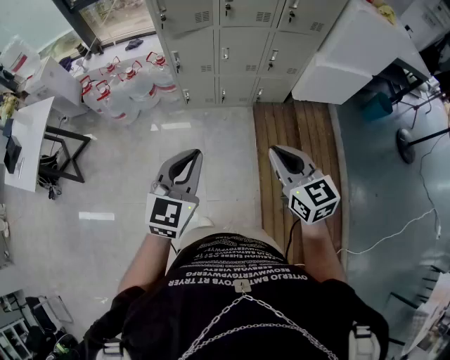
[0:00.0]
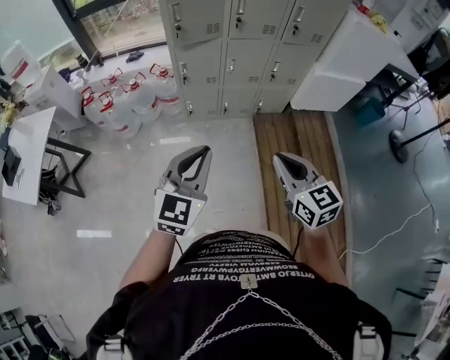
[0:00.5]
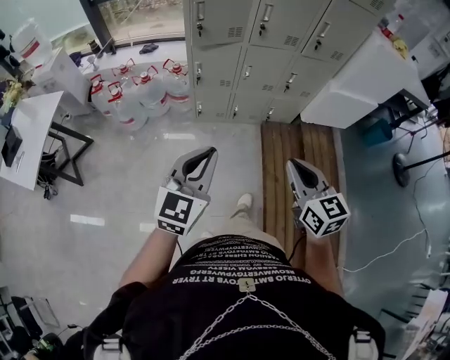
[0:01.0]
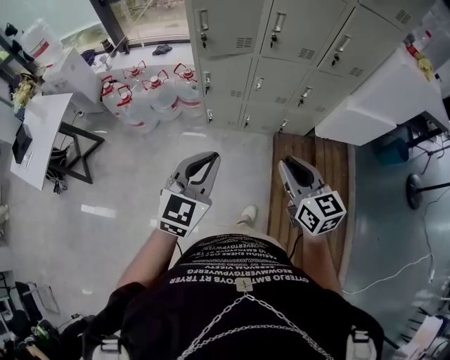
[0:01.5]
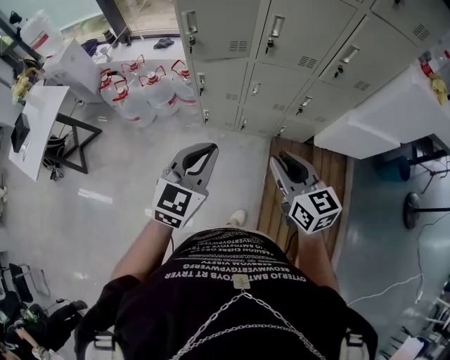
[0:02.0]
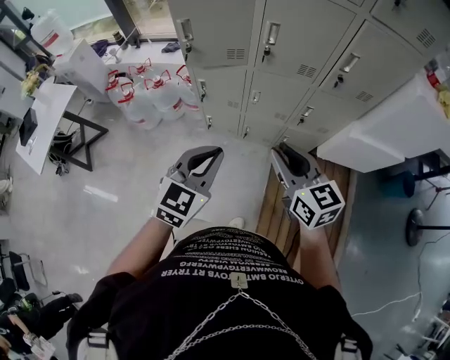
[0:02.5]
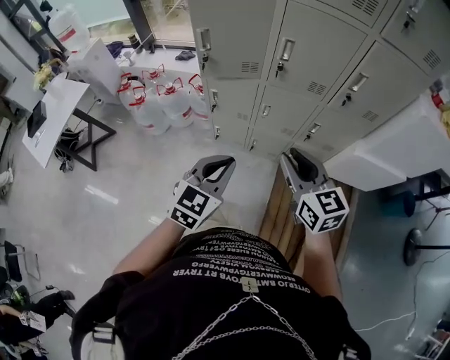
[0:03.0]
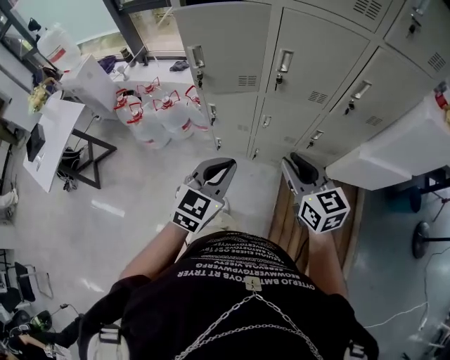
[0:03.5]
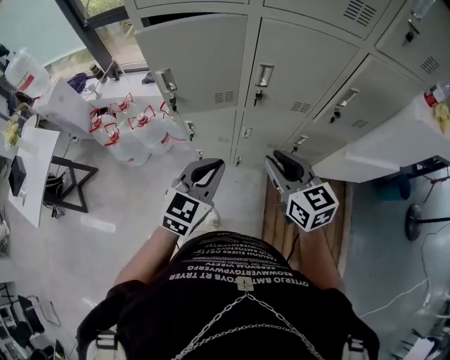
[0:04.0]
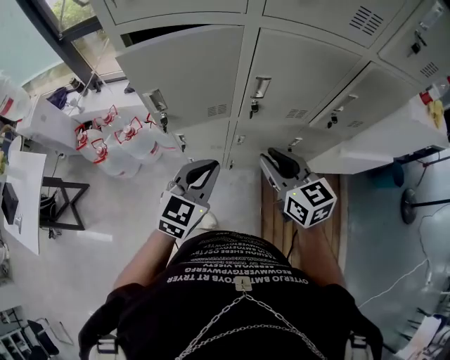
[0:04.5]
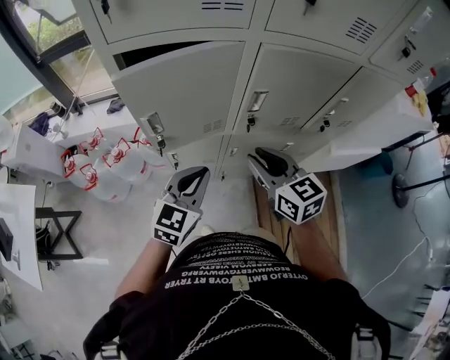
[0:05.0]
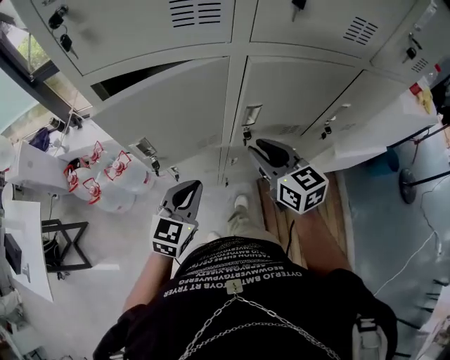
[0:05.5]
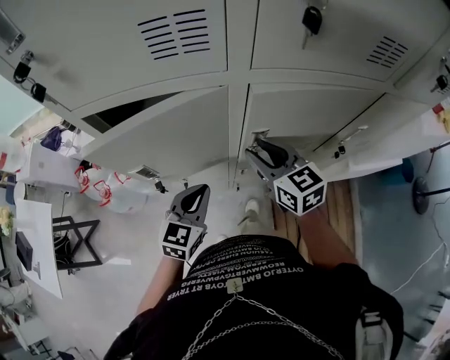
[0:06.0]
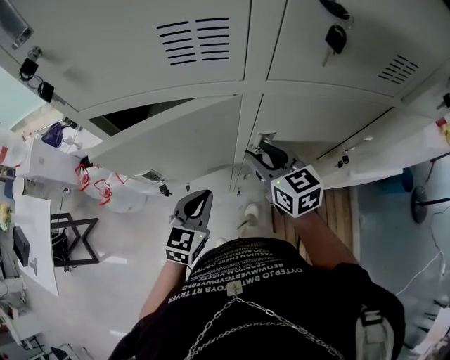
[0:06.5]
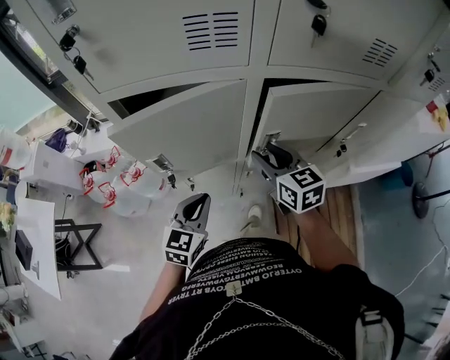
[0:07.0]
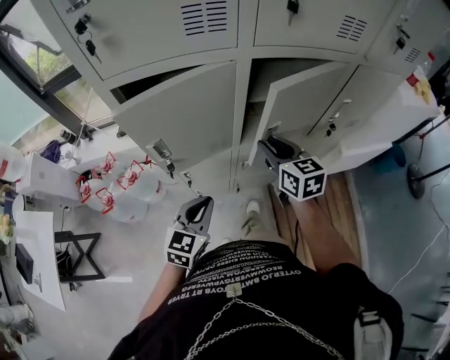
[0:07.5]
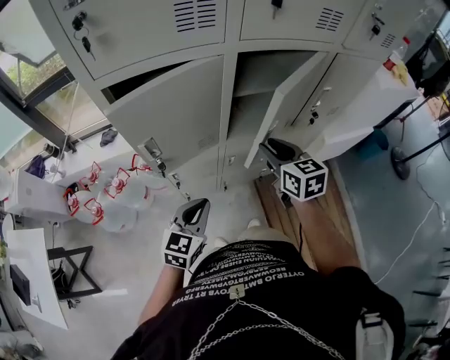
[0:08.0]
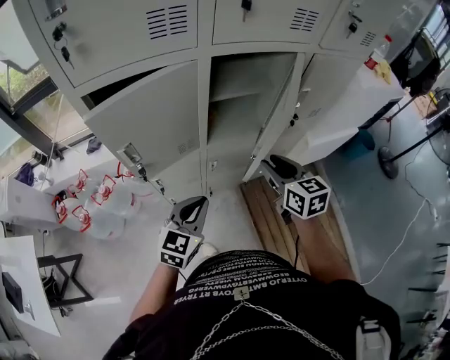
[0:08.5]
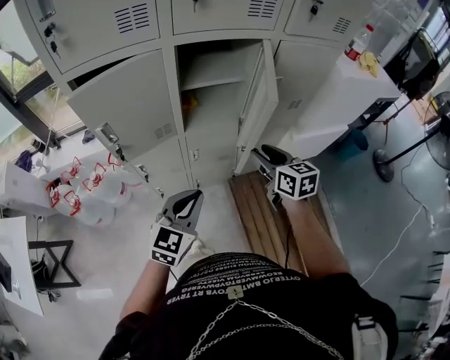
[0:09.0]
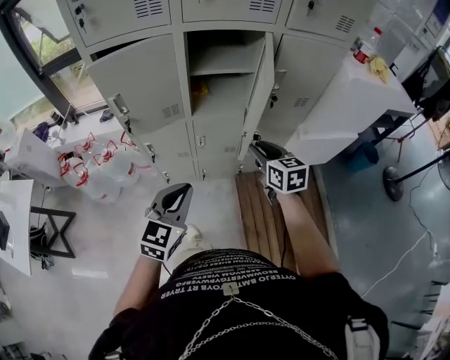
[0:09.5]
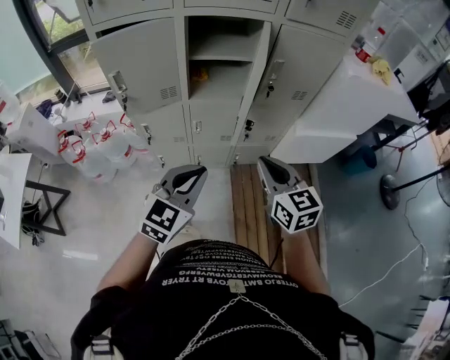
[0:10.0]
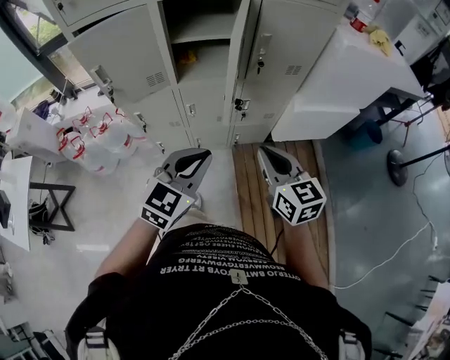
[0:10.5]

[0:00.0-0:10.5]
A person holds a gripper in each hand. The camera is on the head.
0:00.0 to 0:02.0: Both grippers move forward, approximately 25 cm. The right gripper opens its fingers.
0:02.0 to 0:04.0: Both grippers travel together forward, approximately 20 cm.
0:04.0 to 0:06.5: The two grippers go some 25 cm forward.
0:06.5 to 0:08.5: The right gripper goes some 20 cm backward and to the right, and rotates approximately 20 degrees. Meanwhile the left gripper heads backward, covering roughly 15 cm.
0:08.5 to 0:10.5: The left gripper shifts approximately 25 cm to the right and backward; the right gripper goes approximately 25 cm backward and to the right, and closes.

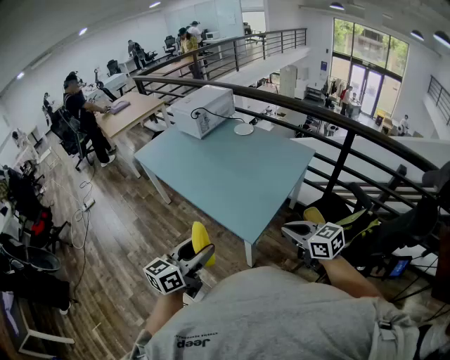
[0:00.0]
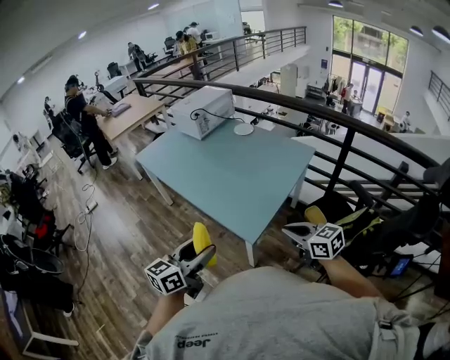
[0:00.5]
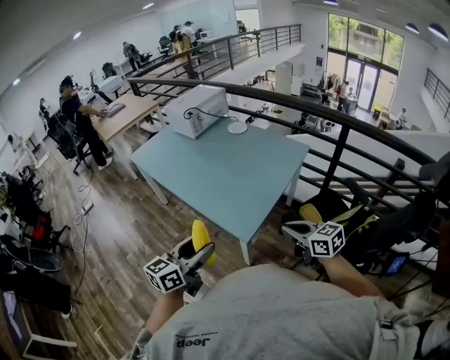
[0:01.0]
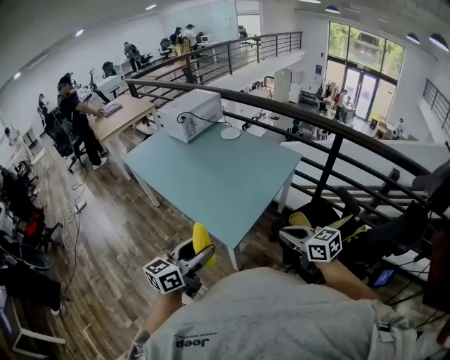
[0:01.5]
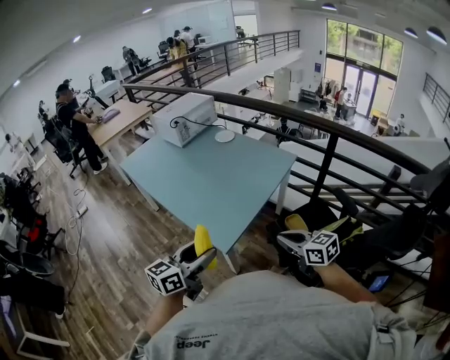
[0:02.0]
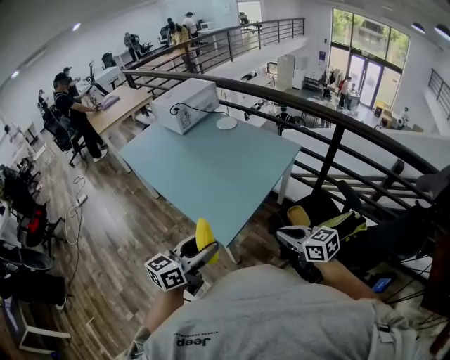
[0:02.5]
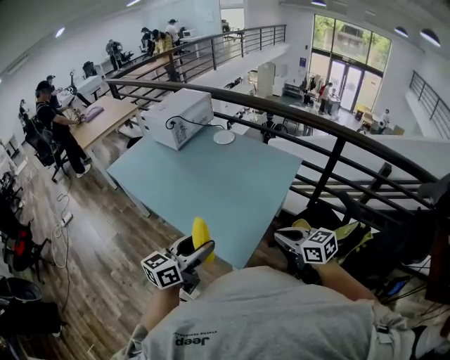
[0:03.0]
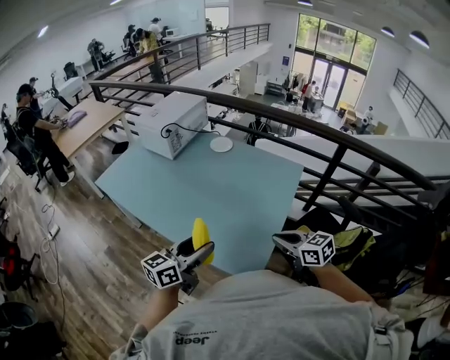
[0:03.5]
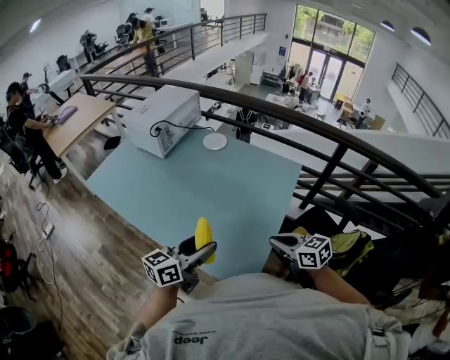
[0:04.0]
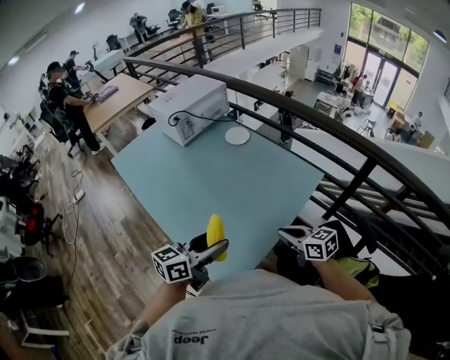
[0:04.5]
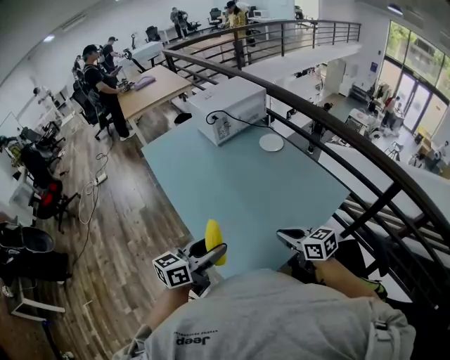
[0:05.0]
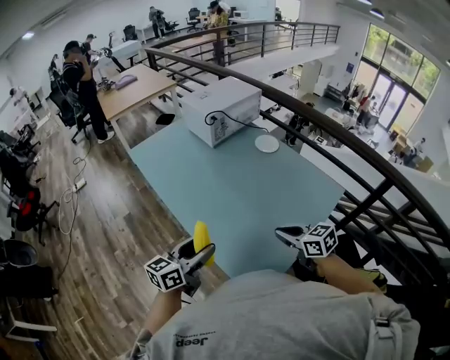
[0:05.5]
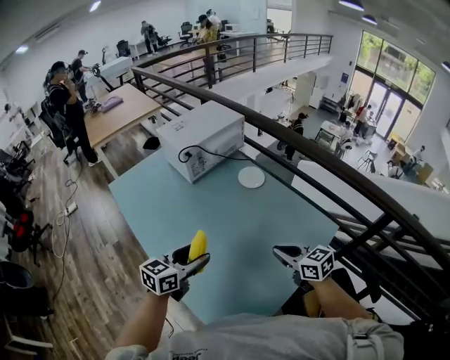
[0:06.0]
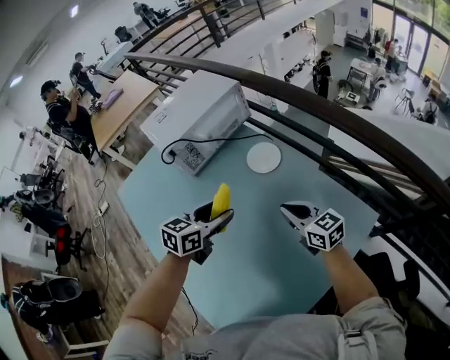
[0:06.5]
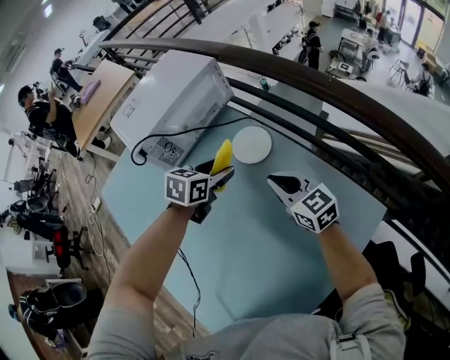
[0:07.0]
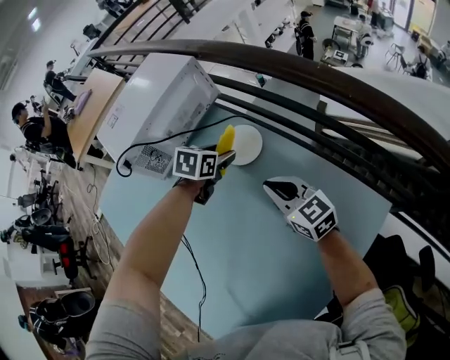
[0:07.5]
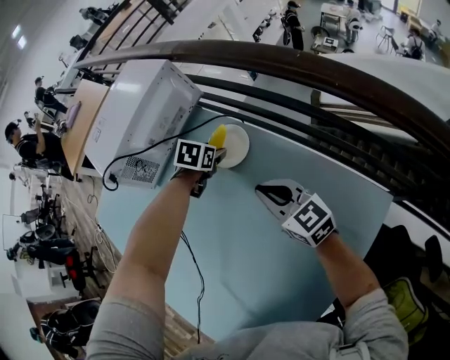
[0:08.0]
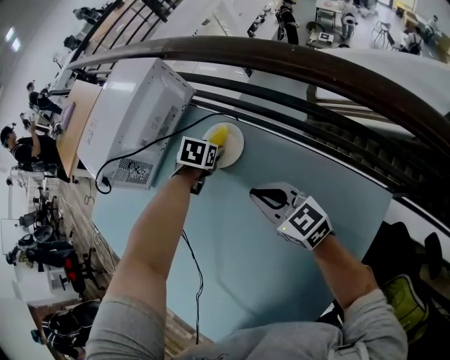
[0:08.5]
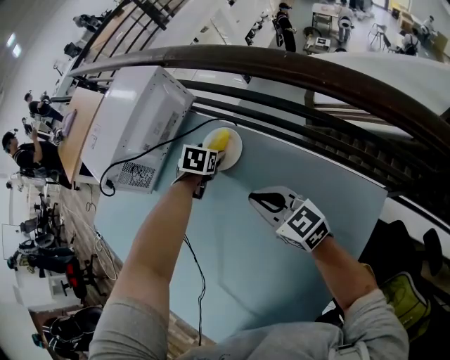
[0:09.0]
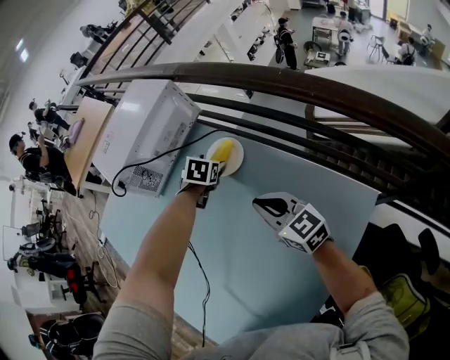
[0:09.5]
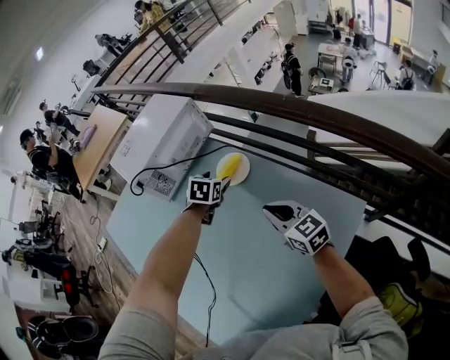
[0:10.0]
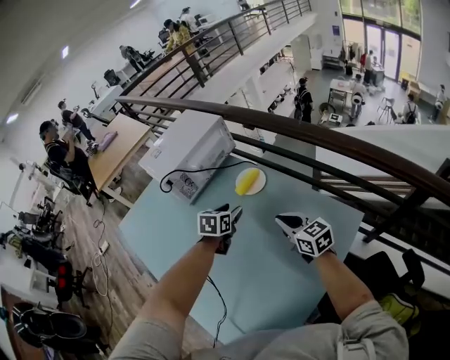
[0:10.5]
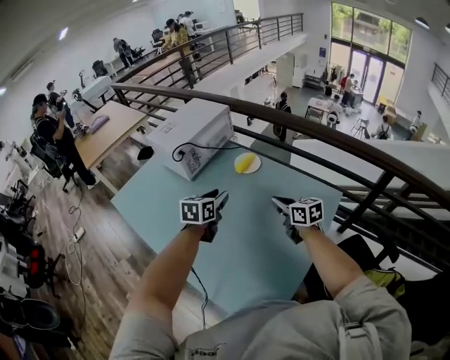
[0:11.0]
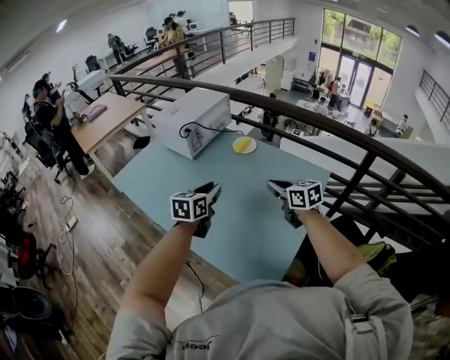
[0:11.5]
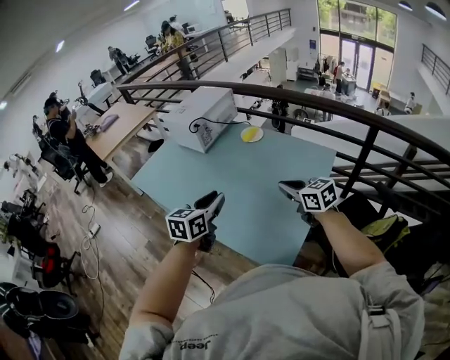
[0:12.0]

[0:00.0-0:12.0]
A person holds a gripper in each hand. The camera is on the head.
0:00.0 to 0:02.0: Both grippers travel together to the right, about 15 cm.
0:02.0 to 0:04.0: The two grippers go some 30 cm forward and to the left.
0:04.0 to 0:06.0: The left gripper changes place by some 20 cm, and swivels approximately 30 degrees; the right gripper changes place by about 25 cm.
0:06.0 to 0:08.0: The left gripper goes roughly 60 cm forward, downward and to the right, and tips its fingers downward by approximately 50 degrees. The right gripper heads forward and downward, covering some 35 cm.
0:08.0 to 0:10.0: The left gripper shifts some 15 cm upward and backward; the right gripper goes roughly 10 cm backward and upward.
0:10.0 to 0:12.0: The pair of grippers is taken backward and to the left, about 50 cm. The left gripper shifts approximately 25 cm upward, tips its fingers upward by roughly 30 degrees, and closes. Meanwhile the right gripper heads upward, covering approximately 15 cm.

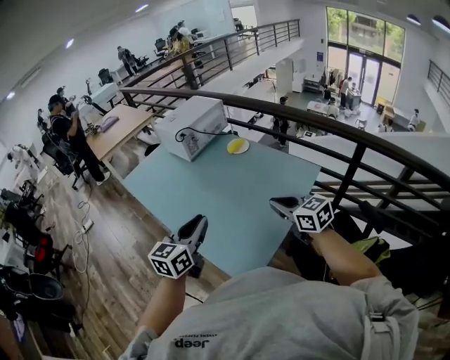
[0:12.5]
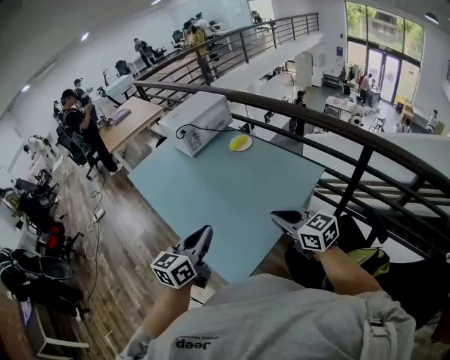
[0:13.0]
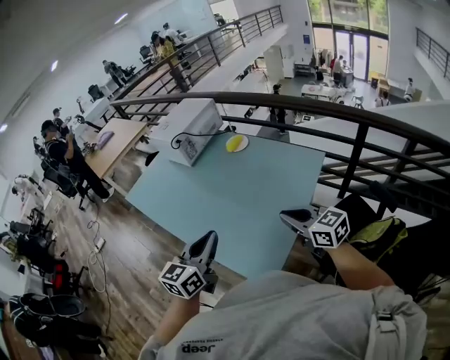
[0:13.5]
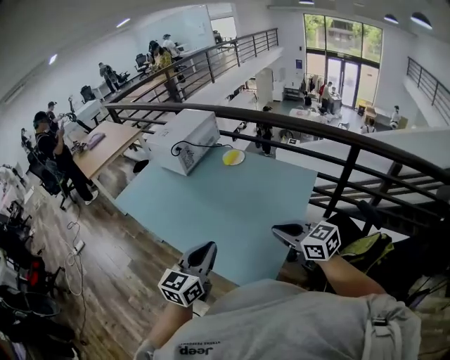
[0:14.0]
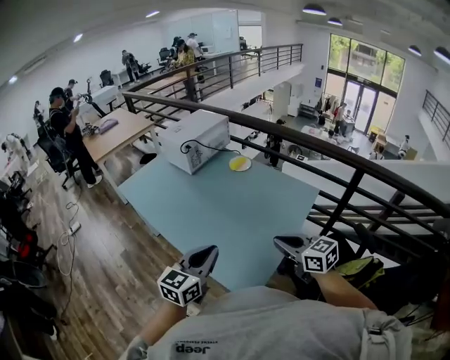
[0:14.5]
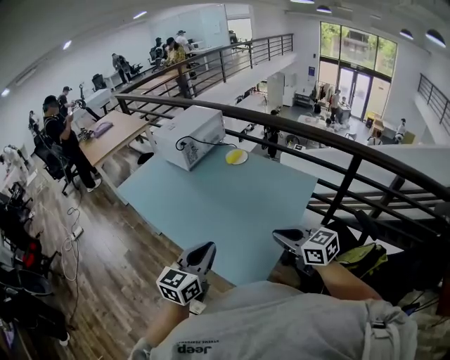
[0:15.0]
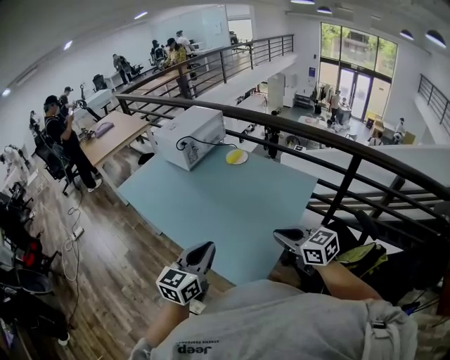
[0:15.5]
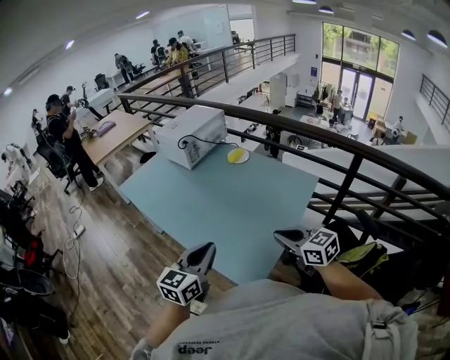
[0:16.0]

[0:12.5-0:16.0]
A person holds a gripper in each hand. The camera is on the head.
0:12.5 to 0:14.5: The left gripper moves roughly 10 cm to the right and comes back. The right gripper moves backward, about 5 cm.
0:14.5 to 0:16.0: The grippers stay close to where they were, moving slightly.

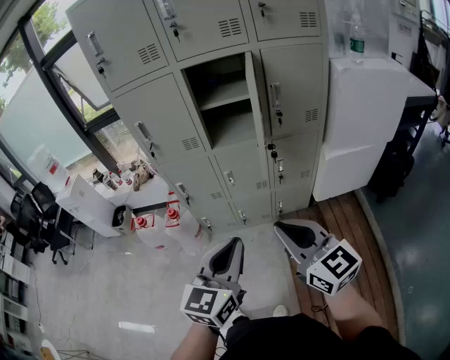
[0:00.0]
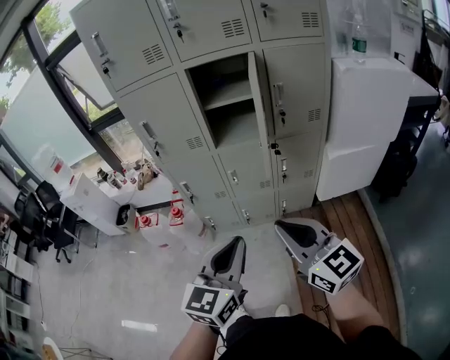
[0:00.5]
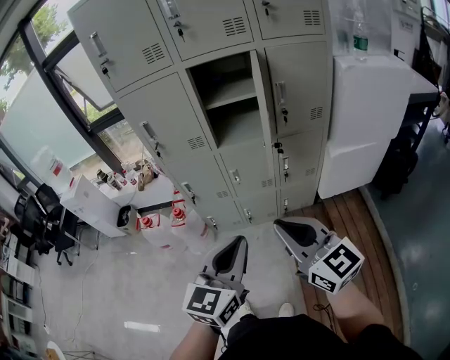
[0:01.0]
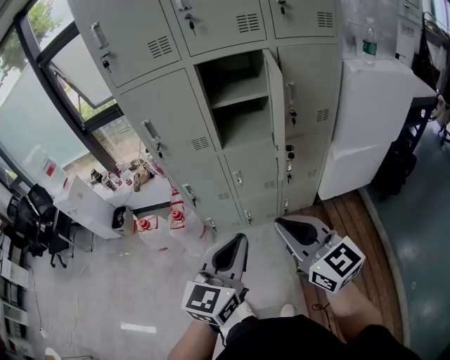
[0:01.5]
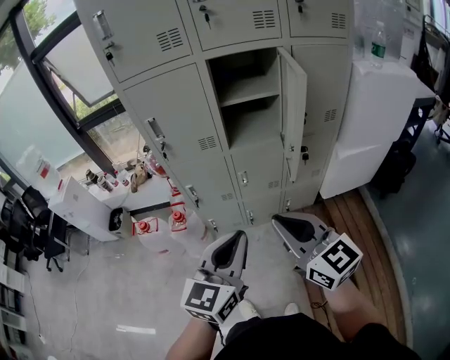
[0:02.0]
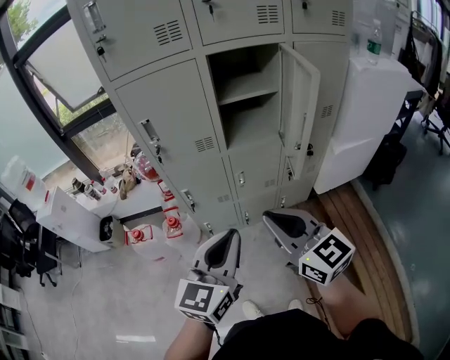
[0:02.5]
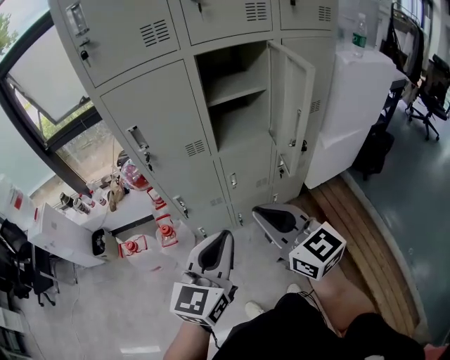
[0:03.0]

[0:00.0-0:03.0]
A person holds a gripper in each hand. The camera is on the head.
0:00.0 to 0:01.5: The left gripper ends up some 5 cm from where it was; the right gripper heads to the left, covering about 5 cm.
0:01.5 to 0:03.0: Both grippers move to the left and forward, about 15 cm.
